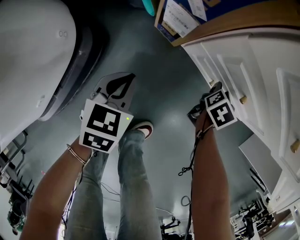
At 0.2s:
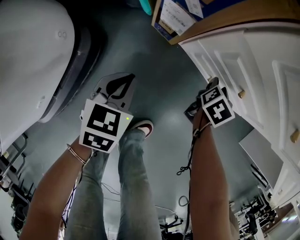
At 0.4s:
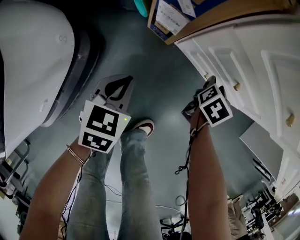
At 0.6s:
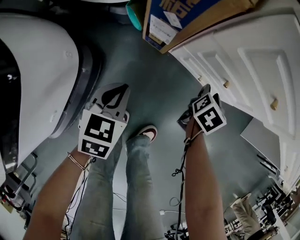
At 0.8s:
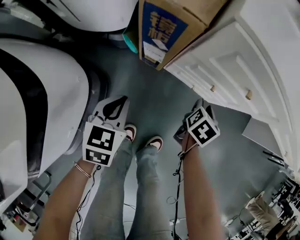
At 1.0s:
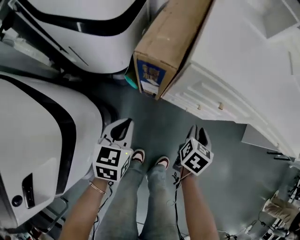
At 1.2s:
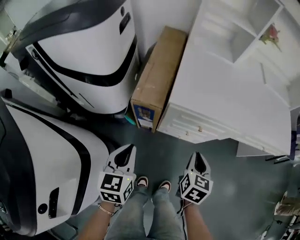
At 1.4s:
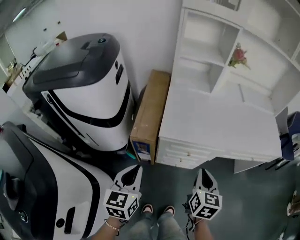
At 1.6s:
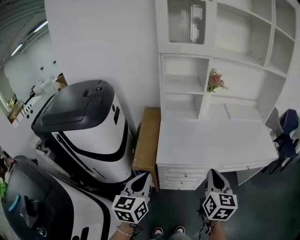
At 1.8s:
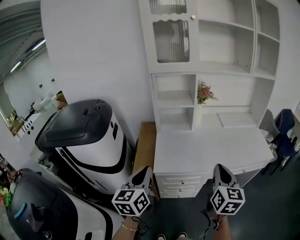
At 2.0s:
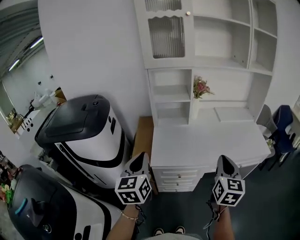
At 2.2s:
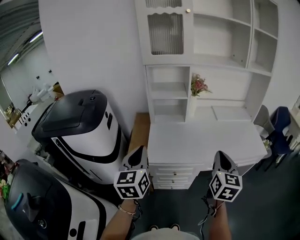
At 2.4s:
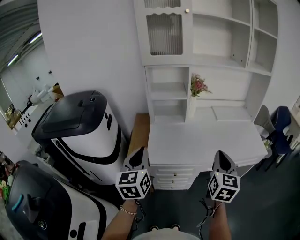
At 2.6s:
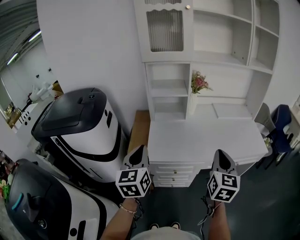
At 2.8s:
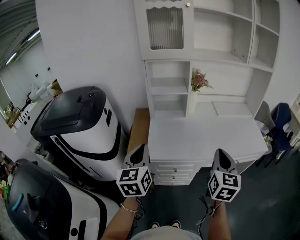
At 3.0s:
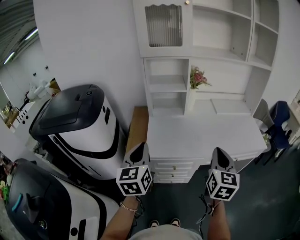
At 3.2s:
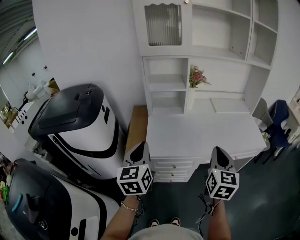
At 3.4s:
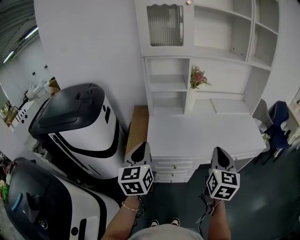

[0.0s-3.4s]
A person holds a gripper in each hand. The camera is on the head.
0.0s to 1.6s: Both grippers travel together upward, about 70 cm. The right gripper points its fingers about 40 degrees further upward, and closes its fingers; the left gripper points its fingers roughly 40 degrees further upward.
1.6s to 3.4s: The left gripper goes about 10 cm upward and forward; the right gripper moves to the right and upward, approximately 10 cm.

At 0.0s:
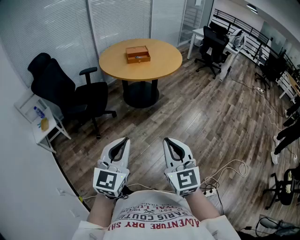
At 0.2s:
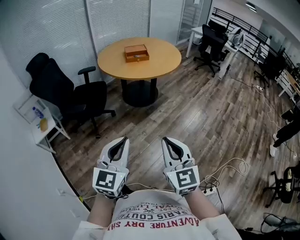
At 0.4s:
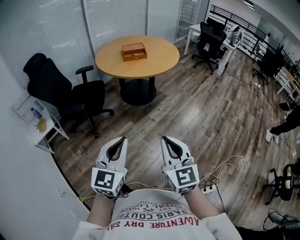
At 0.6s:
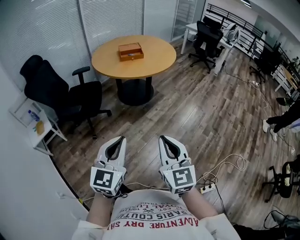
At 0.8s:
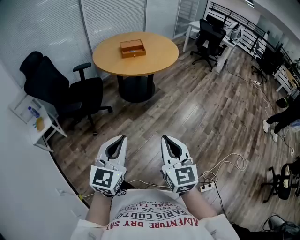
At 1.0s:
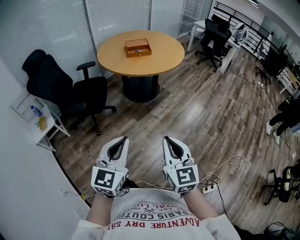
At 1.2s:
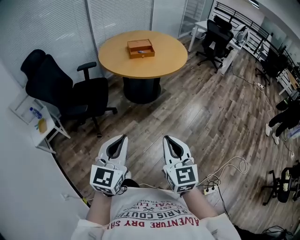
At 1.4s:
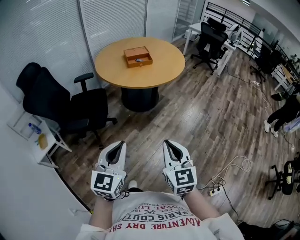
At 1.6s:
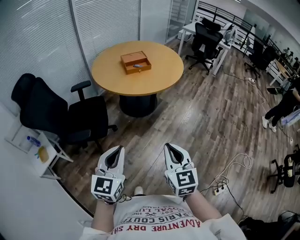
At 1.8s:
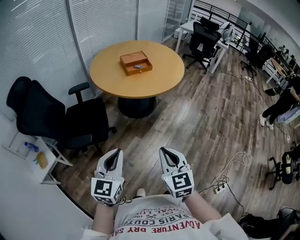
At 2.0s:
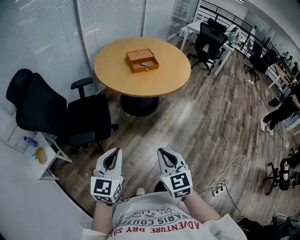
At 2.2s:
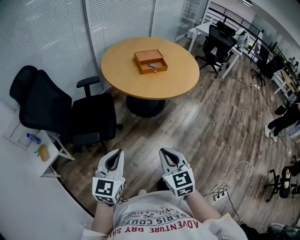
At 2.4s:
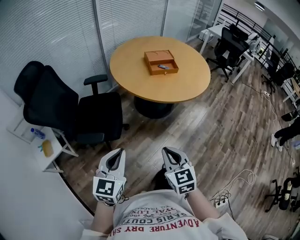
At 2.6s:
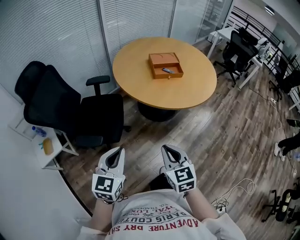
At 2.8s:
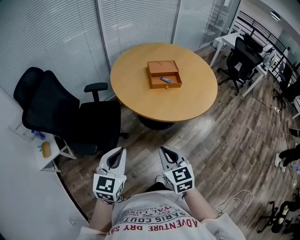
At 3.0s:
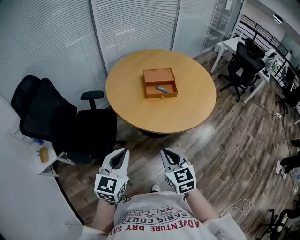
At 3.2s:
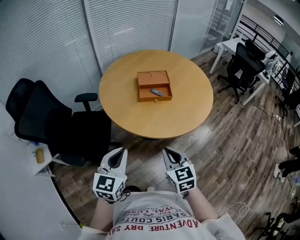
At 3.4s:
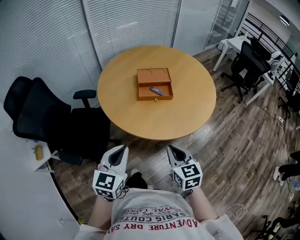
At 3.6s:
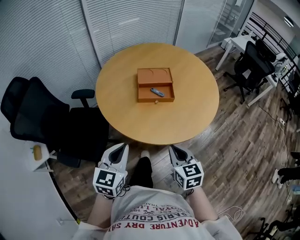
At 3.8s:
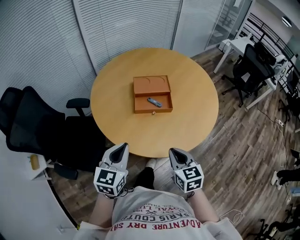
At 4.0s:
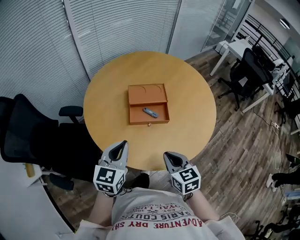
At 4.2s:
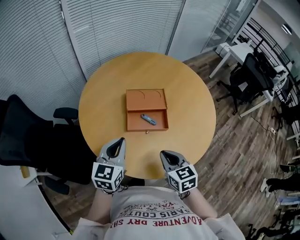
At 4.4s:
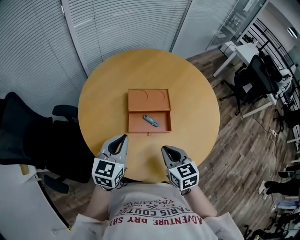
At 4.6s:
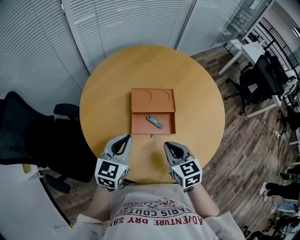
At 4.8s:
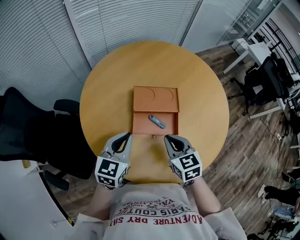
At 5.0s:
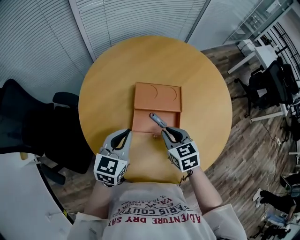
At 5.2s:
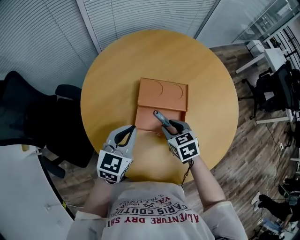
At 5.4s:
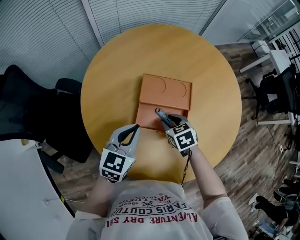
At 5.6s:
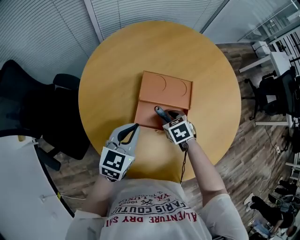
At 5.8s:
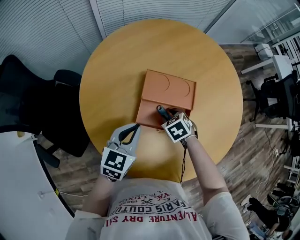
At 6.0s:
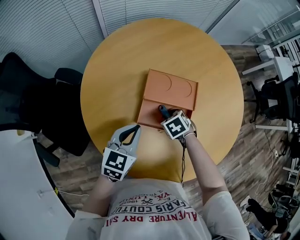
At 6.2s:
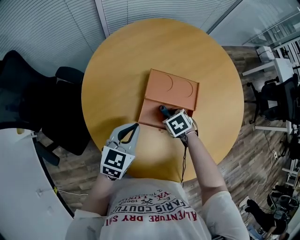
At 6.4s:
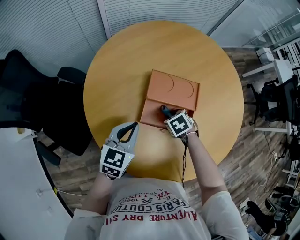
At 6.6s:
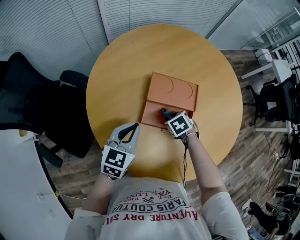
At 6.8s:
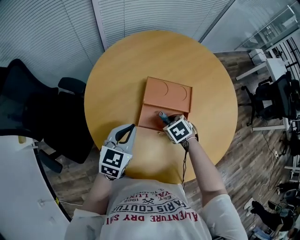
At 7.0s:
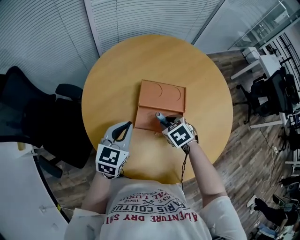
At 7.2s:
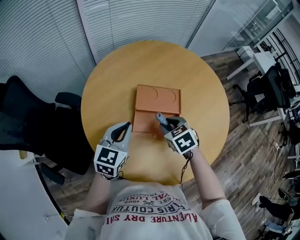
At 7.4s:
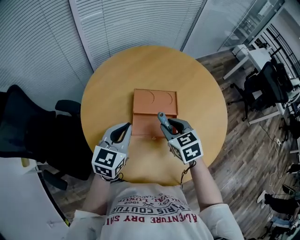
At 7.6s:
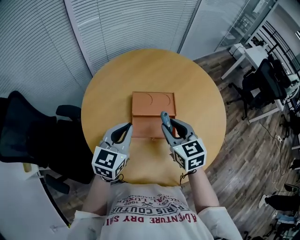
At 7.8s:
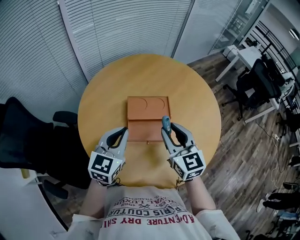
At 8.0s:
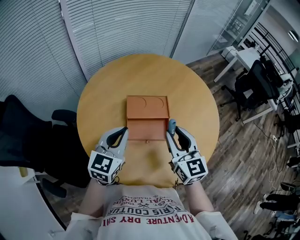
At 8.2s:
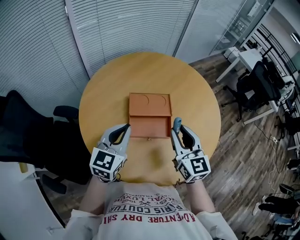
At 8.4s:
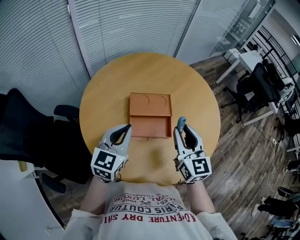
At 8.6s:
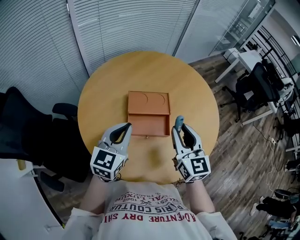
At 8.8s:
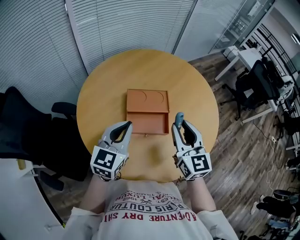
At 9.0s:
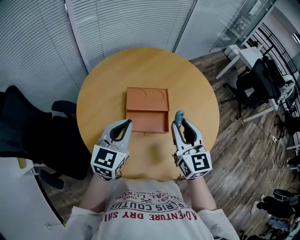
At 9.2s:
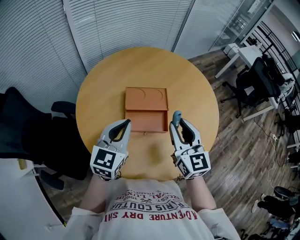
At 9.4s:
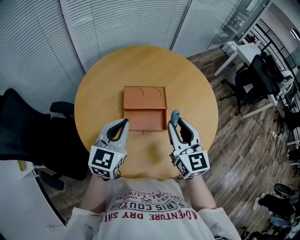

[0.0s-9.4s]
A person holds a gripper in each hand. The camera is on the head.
0.0s to 1.6s: The right gripper heads forward and to the left, covering about 25 cm, while the left gripper is displaced to the left and forward by approximately 30 cm.
1.6s to 3.2s: Both grippers travel together forward, roughly 40 cm. The right gripper rotates roughly 20 degrees.
3.2s to 4.8s: The pair of grippers is taken forward, about 40 cm.
4.8s to 6.2s: The right gripper travels downward and forward by some 20 cm, tilts its fingers about 40 degrees downward, and opens its fingers; the left gripper heads downward, covering roughly 10 cm.
6.2s to 7.8s: The right gripper heads upward, covering roughly 30 cm, and tips its fingers upward by roughly 60 degrees, while the left gripper heads upward, covering approximately 15 cm.
7.8s to 9.4s: The right gripper ends up approximately 5 cm from where it was.

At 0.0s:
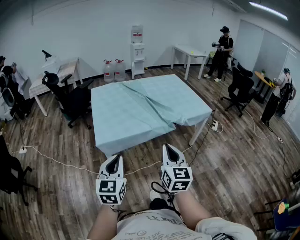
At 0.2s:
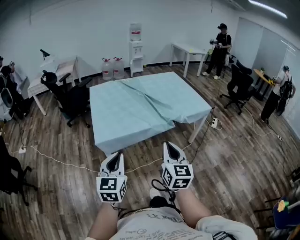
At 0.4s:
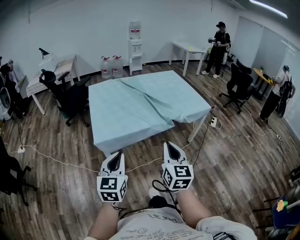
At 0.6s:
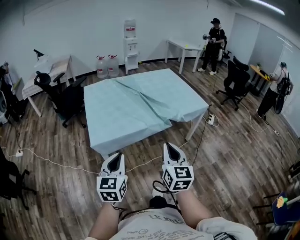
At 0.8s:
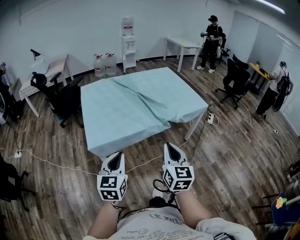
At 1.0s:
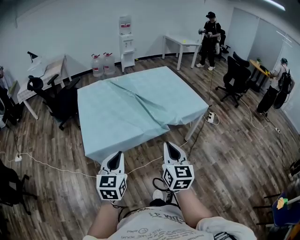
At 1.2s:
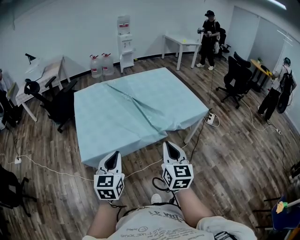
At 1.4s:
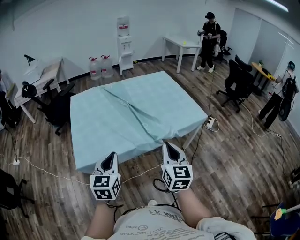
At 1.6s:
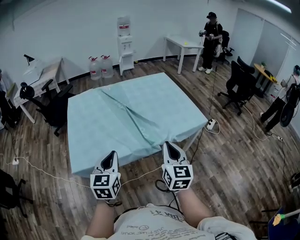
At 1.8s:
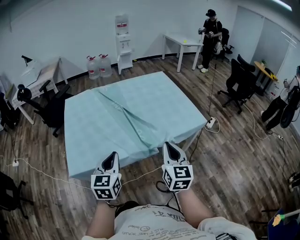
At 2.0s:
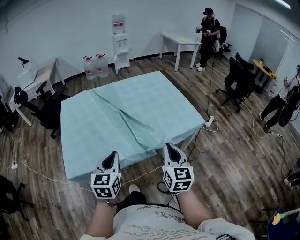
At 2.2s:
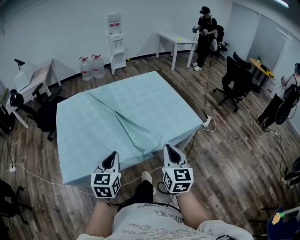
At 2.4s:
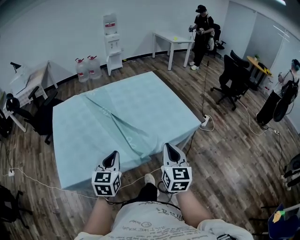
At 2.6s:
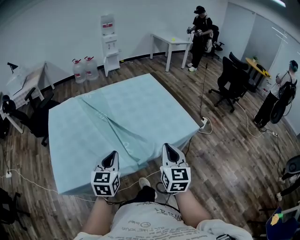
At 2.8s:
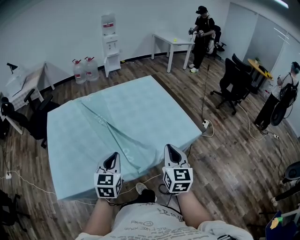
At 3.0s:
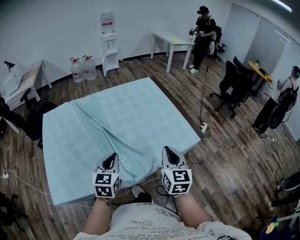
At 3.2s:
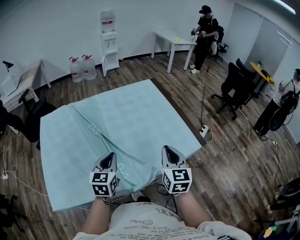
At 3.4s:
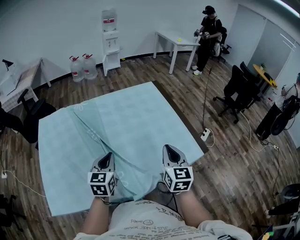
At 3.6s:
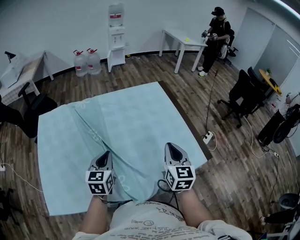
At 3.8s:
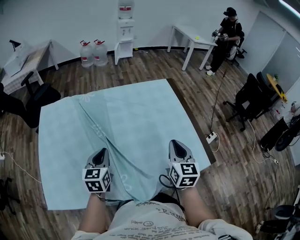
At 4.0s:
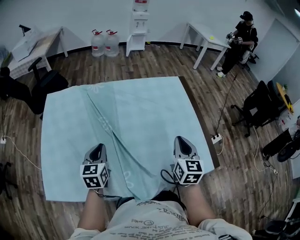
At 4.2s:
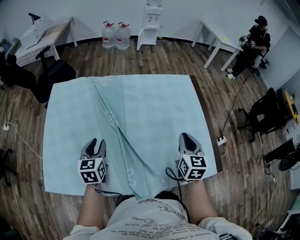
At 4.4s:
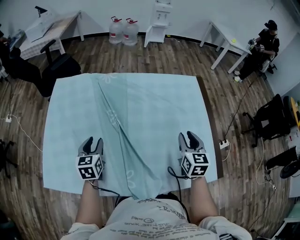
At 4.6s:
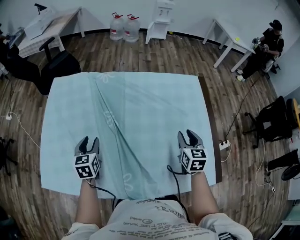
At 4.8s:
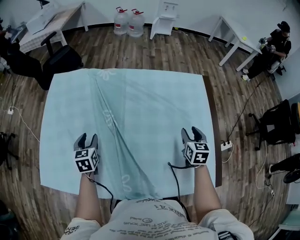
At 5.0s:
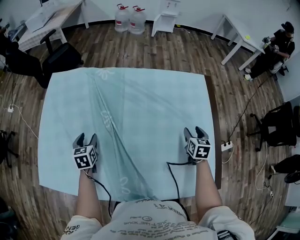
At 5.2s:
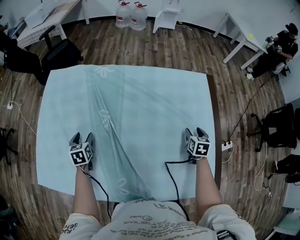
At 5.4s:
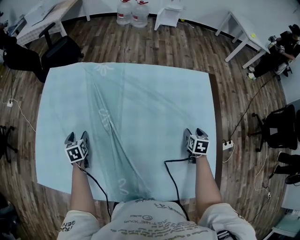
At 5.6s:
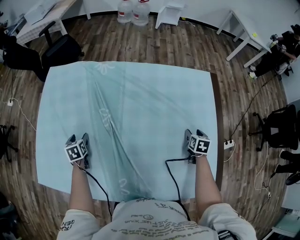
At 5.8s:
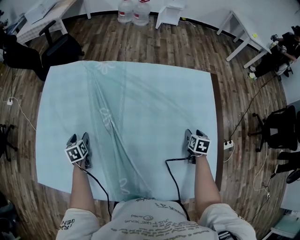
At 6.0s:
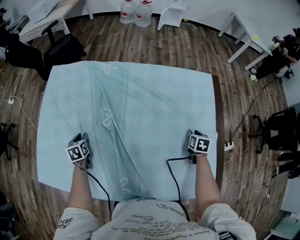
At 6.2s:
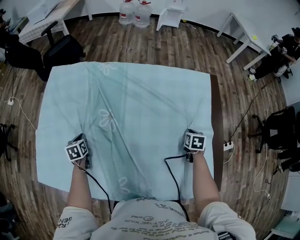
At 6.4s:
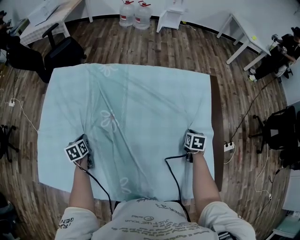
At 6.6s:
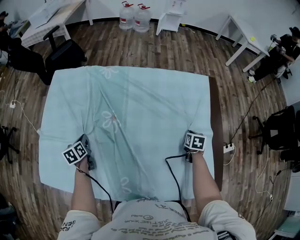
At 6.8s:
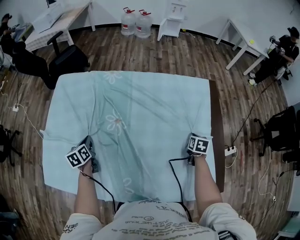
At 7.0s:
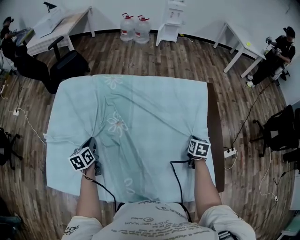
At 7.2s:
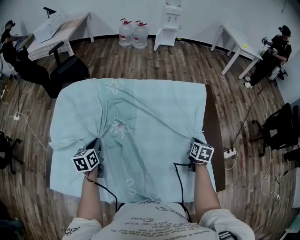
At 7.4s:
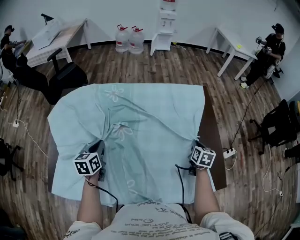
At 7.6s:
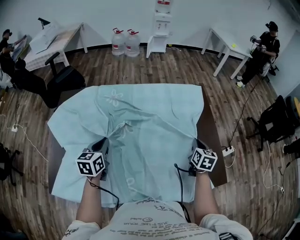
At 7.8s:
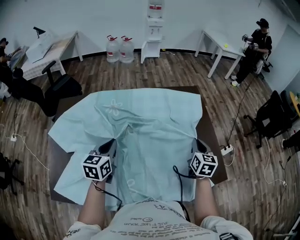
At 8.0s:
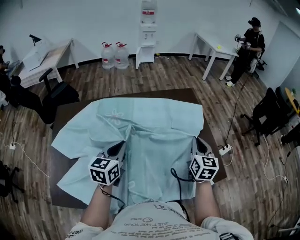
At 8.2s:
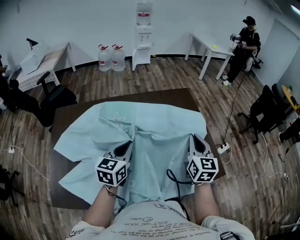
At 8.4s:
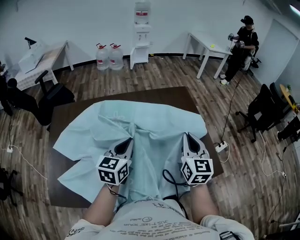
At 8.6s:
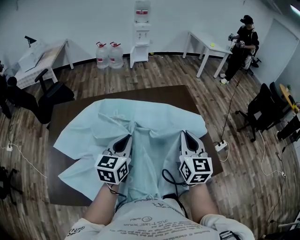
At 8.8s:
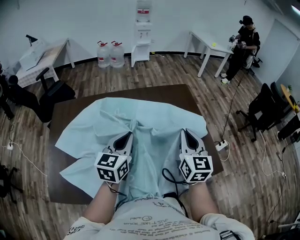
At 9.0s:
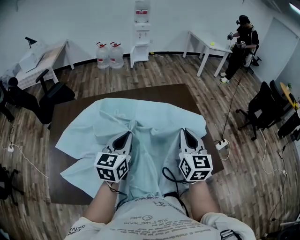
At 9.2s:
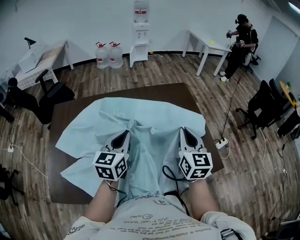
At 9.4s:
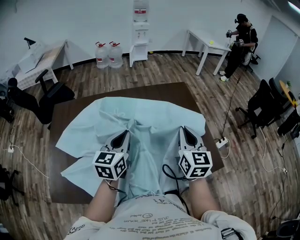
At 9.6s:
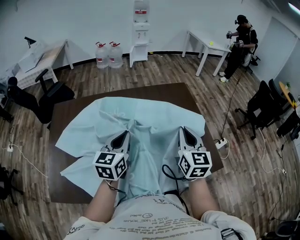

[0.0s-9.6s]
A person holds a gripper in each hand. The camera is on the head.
0.0s to 1.6s: The right gripper moves forward and to the right, roughly 30 cm, while the left gripper is displaced forward by approximately 30 cm.
1.6s to 3.2s: The grippers both shift forward by some 30 cm.
3.2s to 4.8s: The right gripper moves approximately 40 cm, changes its angle by some 30 degrees, and opens up. The left gripper ends up some 30 cm from where it was, rotates about 40 degrees, and opens its fingers.
4.8s to 6.4s: The right gripper goes approximately 15 cm downward, turns by about 20 degrees, and closes its fingers. Meanwhile the left gripper moves downward and to the left, roughly 15 cm, changes its angle by approximately 20 degrees, and closes its fingers.
6.4s to 8.0s: The left gripper heads upward and to the right, covering approximately 35 cm, and points its fingers roughly 30 degrees further upward, while the right gripper goes about 30 cm upward and backward, and points its fingers about 40 degrees further upward.
8.0s to 9.6s: The left gripper shifts by approximately 5 cm. Meanwhile the right gripper shifts roughly 10 cm upward, backward and to the left.

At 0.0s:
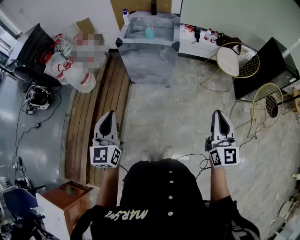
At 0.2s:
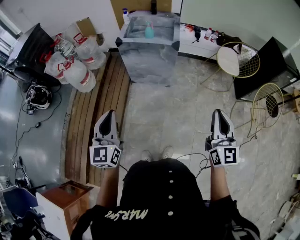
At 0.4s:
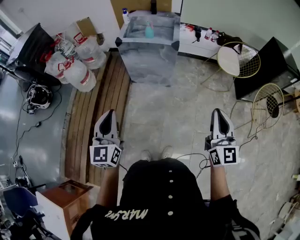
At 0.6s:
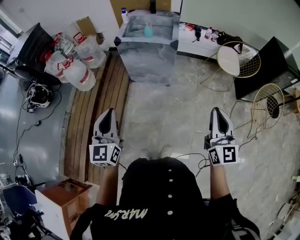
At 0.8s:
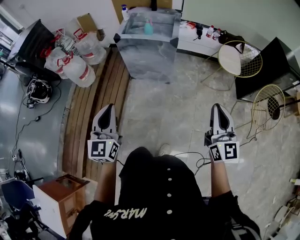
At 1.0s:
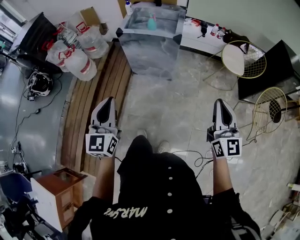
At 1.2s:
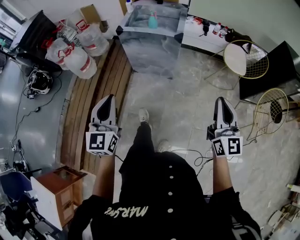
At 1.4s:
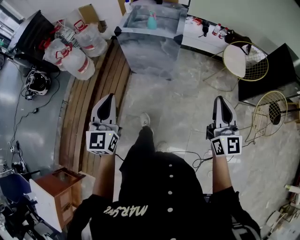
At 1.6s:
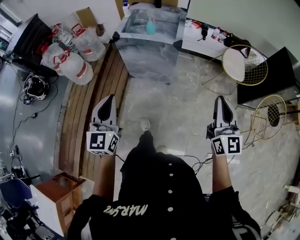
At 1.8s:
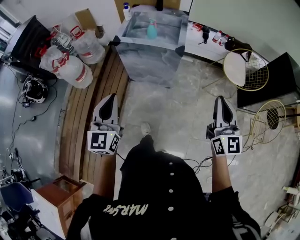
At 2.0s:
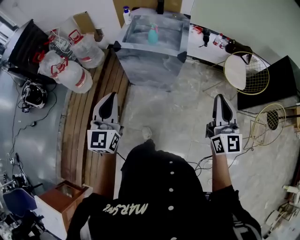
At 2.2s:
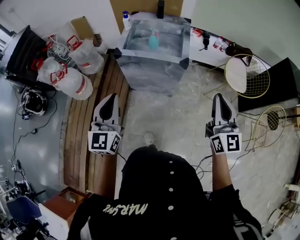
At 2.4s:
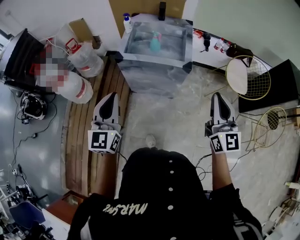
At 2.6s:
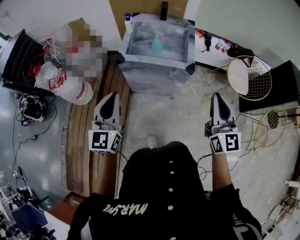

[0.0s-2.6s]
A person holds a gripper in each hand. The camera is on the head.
0.0s to 1.2s: The left gripper heads to the right, covering roughly 5 cm, while the right gripper travels forward and to the right by some 10 cm.
1.2s to 2.6s: The left gripper moves forward, roughly 30 cm. Meanwhile the right gripper shifts some 30 cm forward and to the left.
